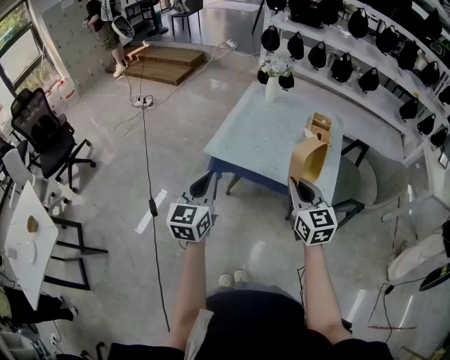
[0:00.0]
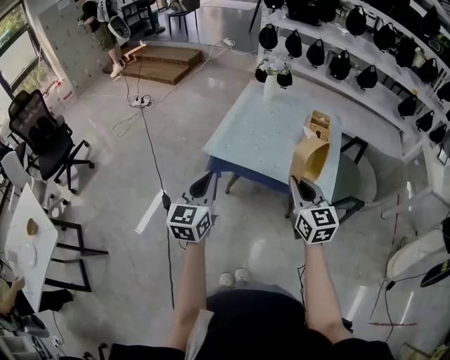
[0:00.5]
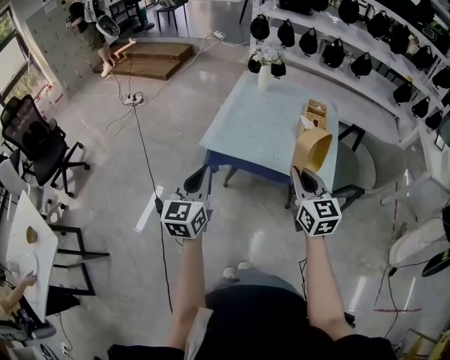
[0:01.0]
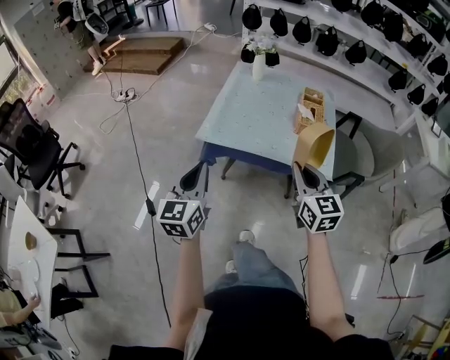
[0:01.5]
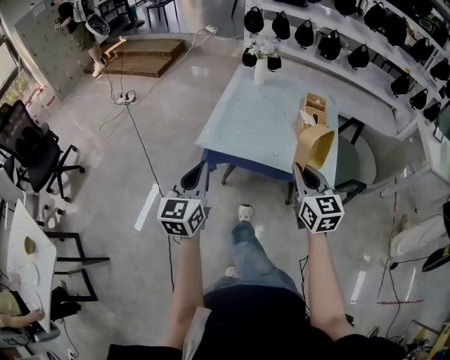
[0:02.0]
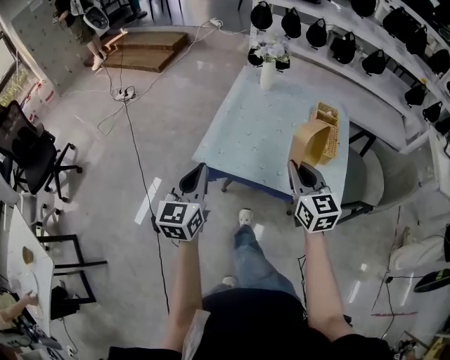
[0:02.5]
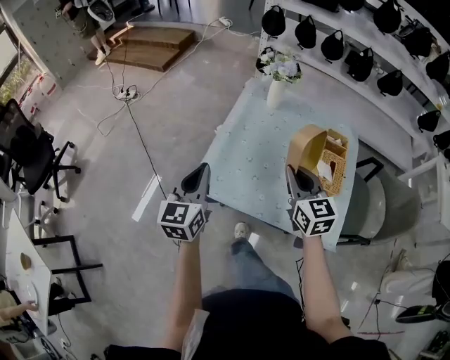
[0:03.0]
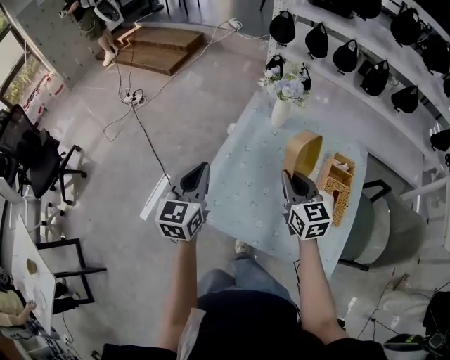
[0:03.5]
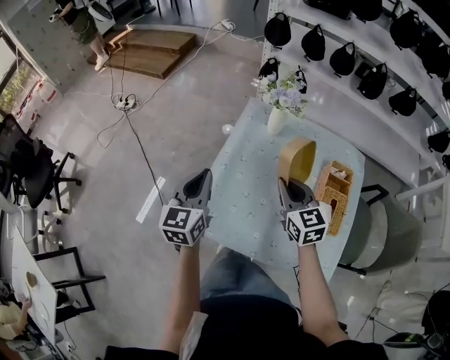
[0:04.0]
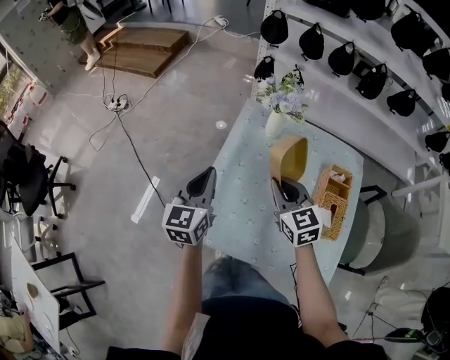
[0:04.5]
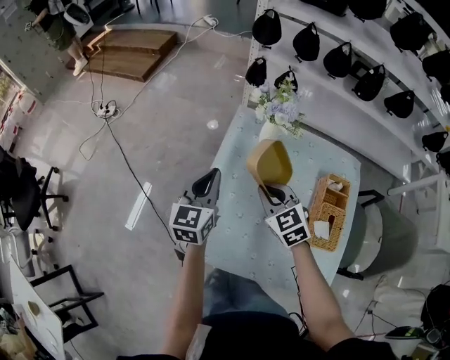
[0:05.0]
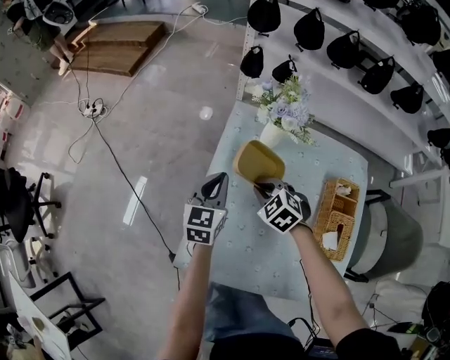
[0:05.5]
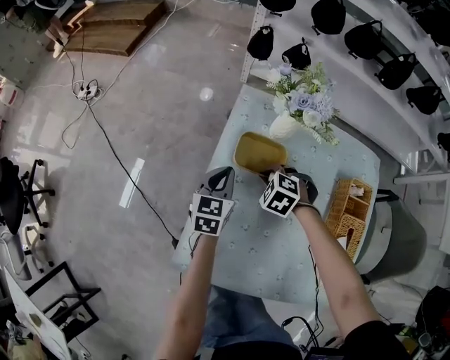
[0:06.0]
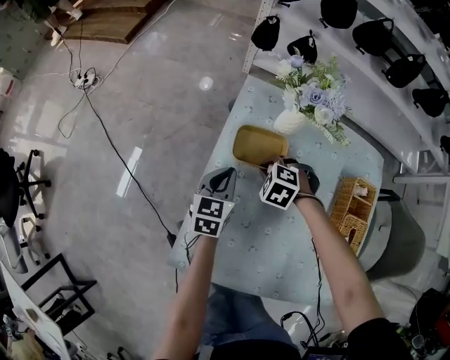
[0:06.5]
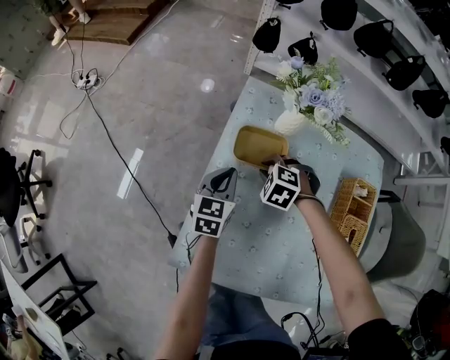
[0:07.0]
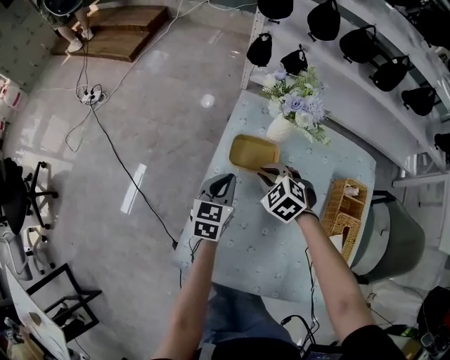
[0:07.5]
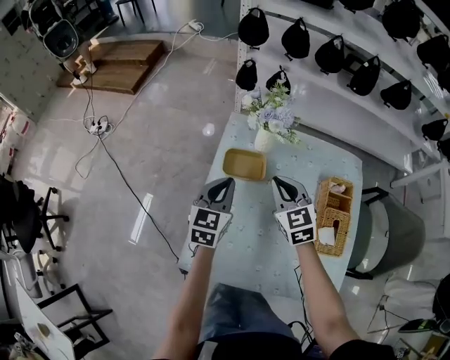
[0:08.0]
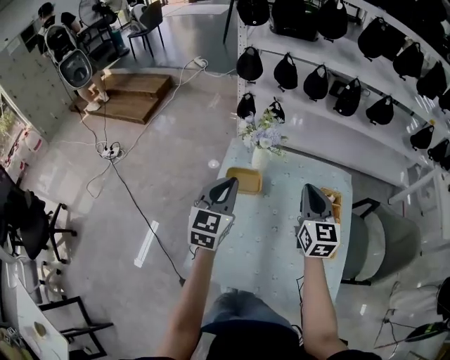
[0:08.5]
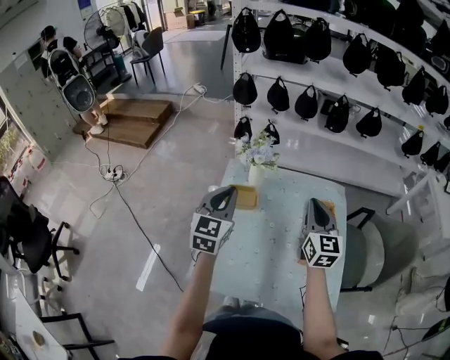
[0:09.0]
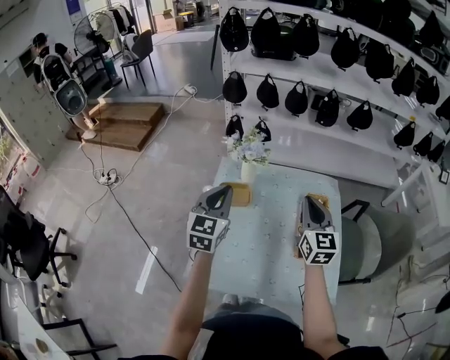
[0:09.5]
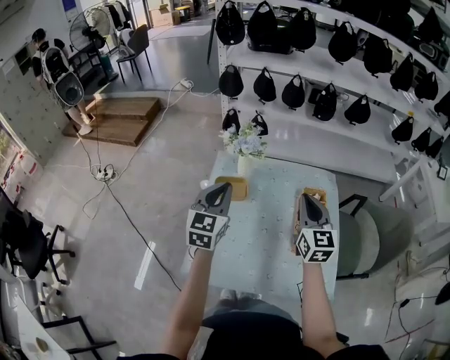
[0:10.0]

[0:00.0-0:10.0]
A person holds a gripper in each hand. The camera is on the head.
0:00.0 to 0:02.0: The grippers move only a little.
0:02.0 to 0:04.0: Both grippers are carried forward, approximately 40 cm.
0:04.0 to 0:06.0: Both grippers travel together downward and forward, about 30 cm. The left gripper changes its angle by roughly 20 degrees. Meanwhile the right gripper points its fingers approximately 50 degrees further downward.
0:06.0 to 0:08.0: Both grippers move upward, about 15 cm. The right gripper tips its fingers upward by some 40 degrees.
0:08.0 to 0:10.0: The right gripper is displaced to the right, upward and backward by about 25 cm, and turns by roughly 30 degrees; the left gripper goes about 15 cm upward.

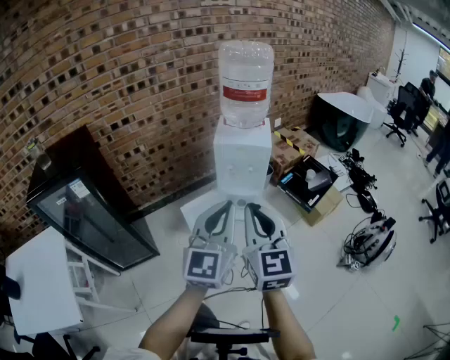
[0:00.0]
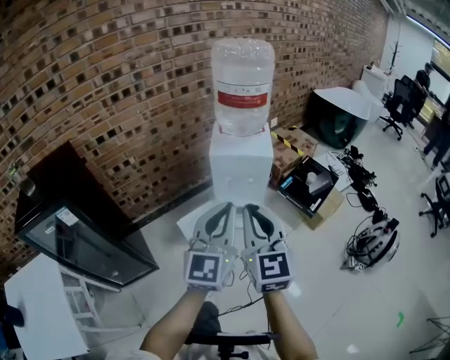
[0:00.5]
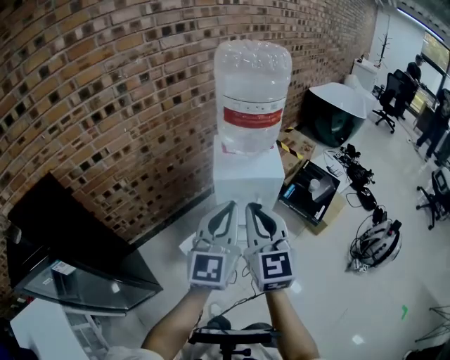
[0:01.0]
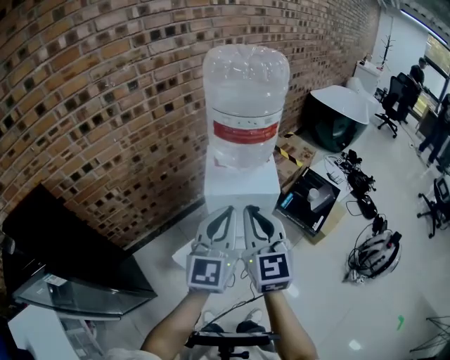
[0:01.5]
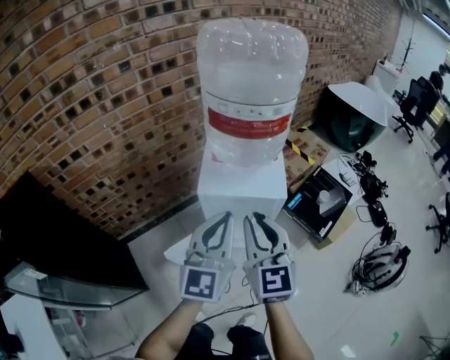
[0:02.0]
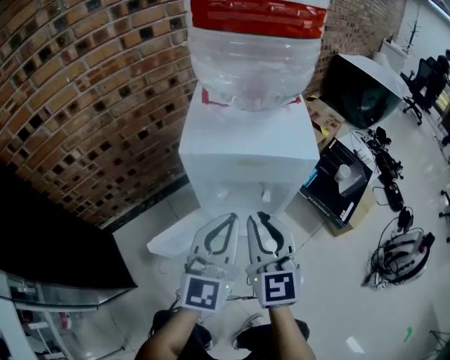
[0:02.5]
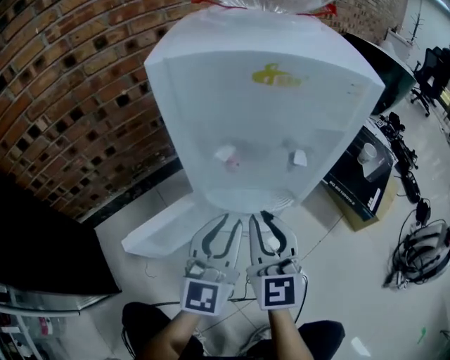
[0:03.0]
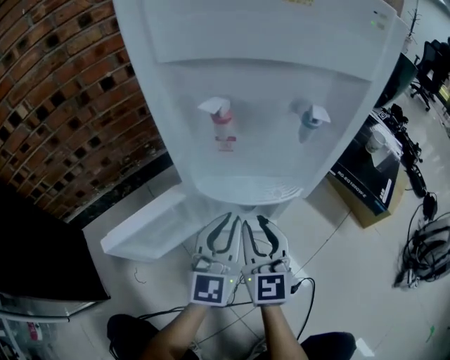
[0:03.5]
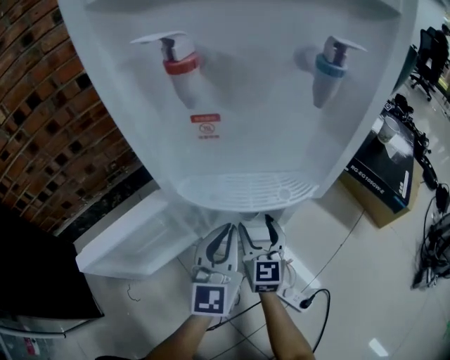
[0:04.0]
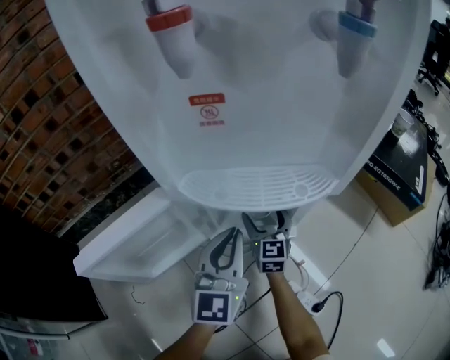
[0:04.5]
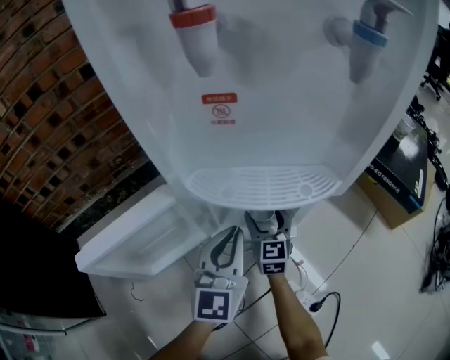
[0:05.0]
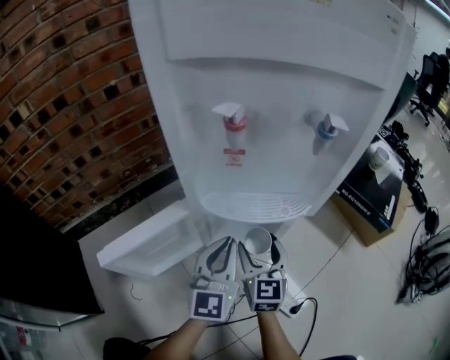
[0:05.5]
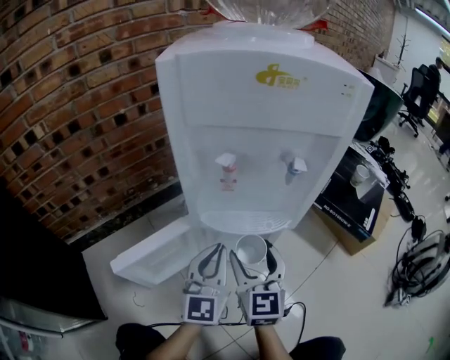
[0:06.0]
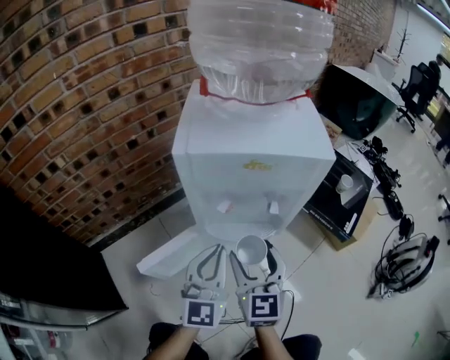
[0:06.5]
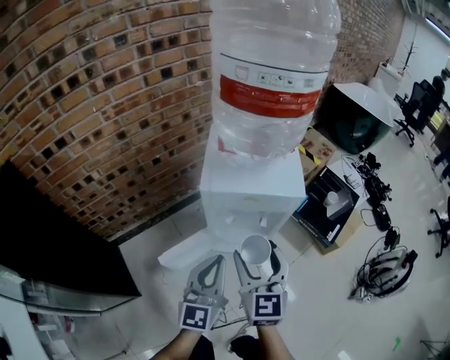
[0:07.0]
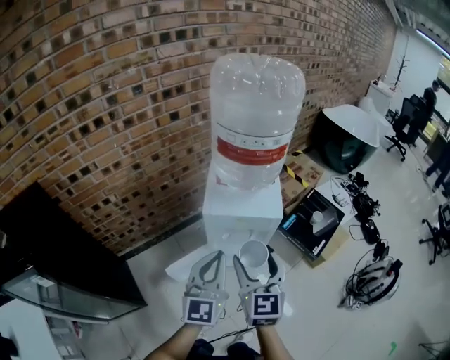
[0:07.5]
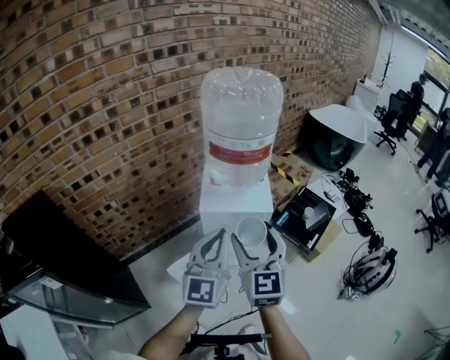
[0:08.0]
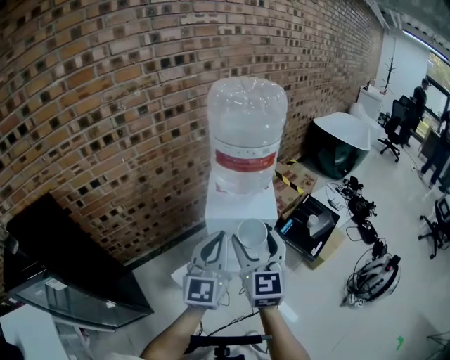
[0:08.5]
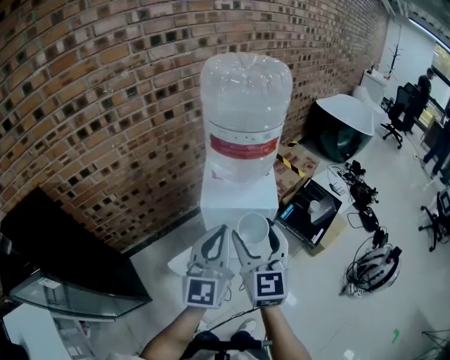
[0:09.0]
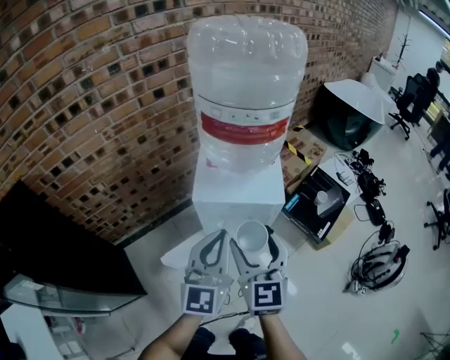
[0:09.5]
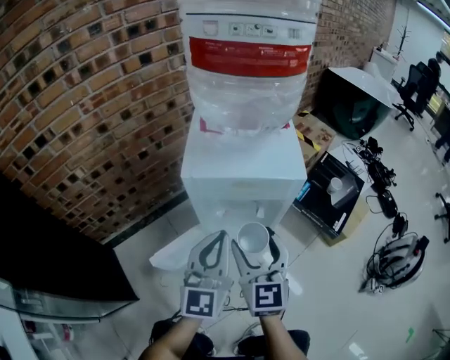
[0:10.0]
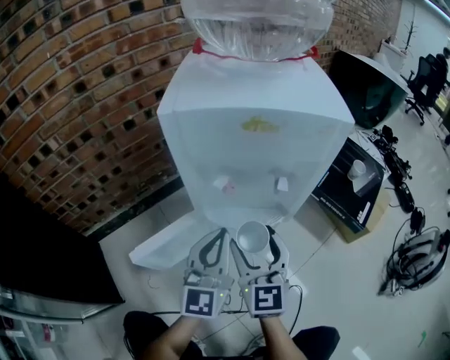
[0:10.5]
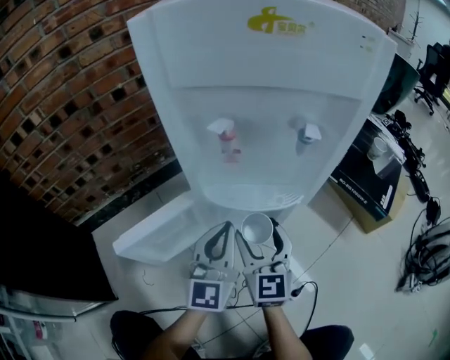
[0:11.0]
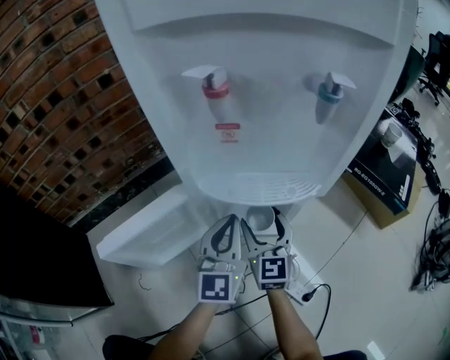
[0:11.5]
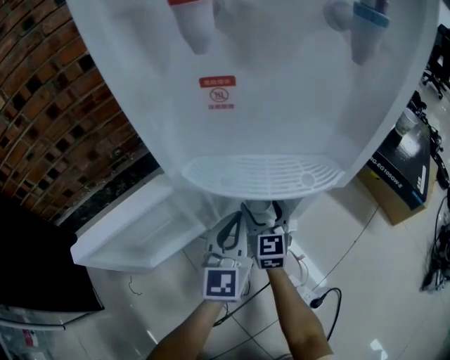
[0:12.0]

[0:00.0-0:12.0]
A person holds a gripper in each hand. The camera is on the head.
0:00.0 to 0:02.0: The two grippers go approximately 35 cm forward.
0:02.0 to 0:04.0: Both grippers move downward, approximately 70 cm. The right gripper opens up.
0:04.0 to 0:06.0: The left gripper goes approximately 10 cm upward. The right gripper is displaced upward by approximately 20 cm.
0:06.0 to 0:08.0: Both grippers move upward, approximately 60 cm.
0:08.0 to 0:10.0: The grippers both shift downward by some 25 cm.
0:10.0 to 0:12.0: The grippers both shift downward by about 50 cm.

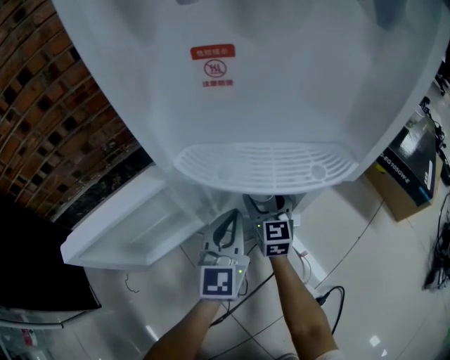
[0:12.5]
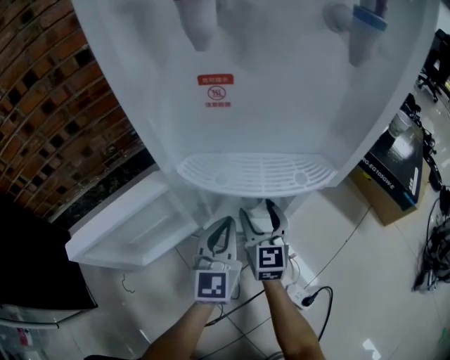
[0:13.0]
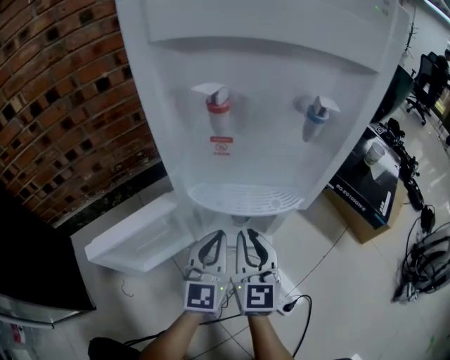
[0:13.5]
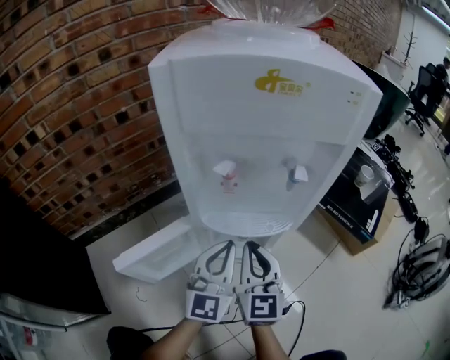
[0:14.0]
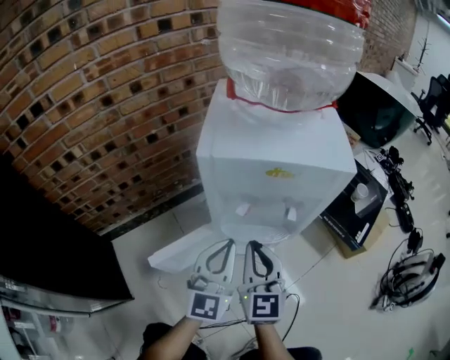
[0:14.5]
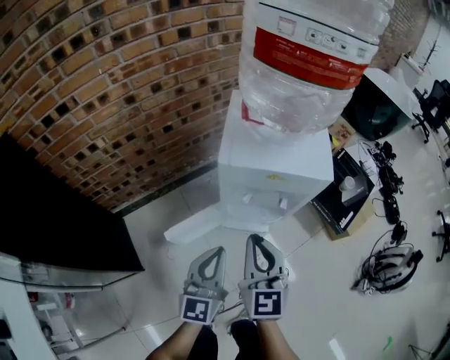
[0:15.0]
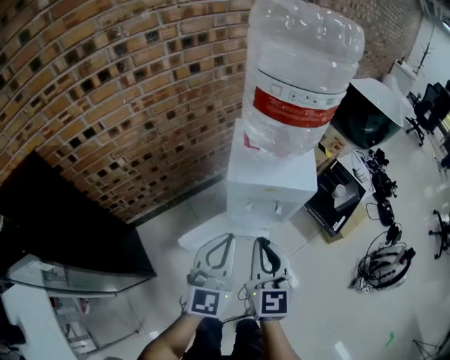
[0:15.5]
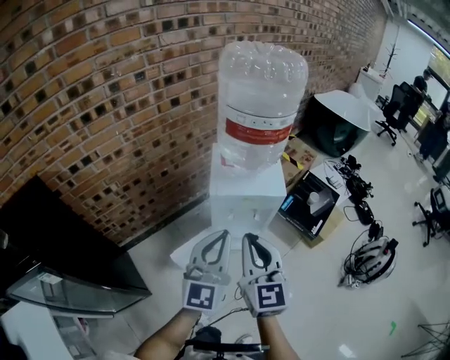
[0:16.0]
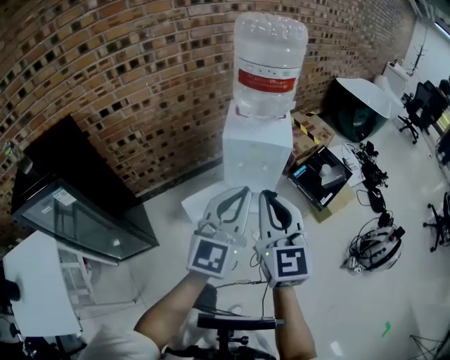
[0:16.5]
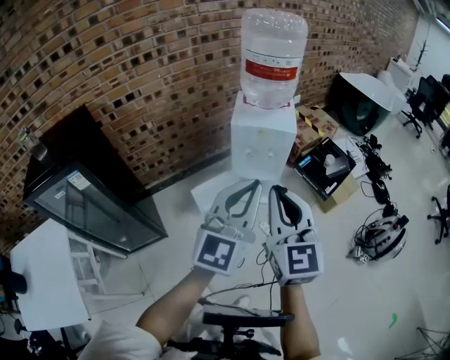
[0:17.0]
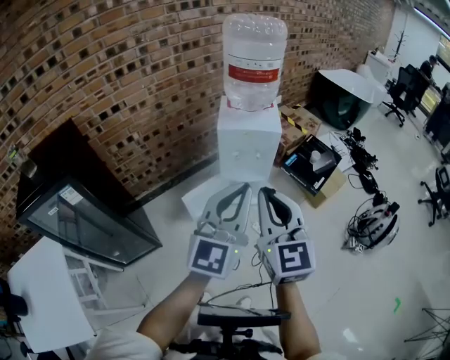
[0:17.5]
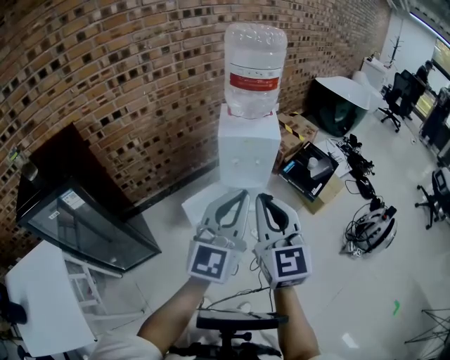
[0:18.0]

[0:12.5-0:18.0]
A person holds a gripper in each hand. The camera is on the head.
0:12.5 to 0:14.5: The right gripper goes some 50 cm upward and backward, and closes up; the left gripper travels upward by some 40 cm.
0:14.5 to 0:16.0: The grippers both shift upward by about 35 cm.
0:16.0 to 0:18.0: The left gripper is displaced backward and upward by about 25 cm. Meanwhile the right gripper is displaced backward by approximately 20 cm.
